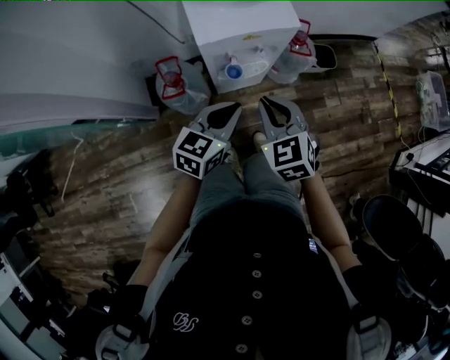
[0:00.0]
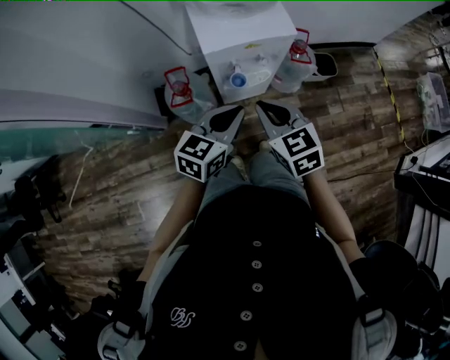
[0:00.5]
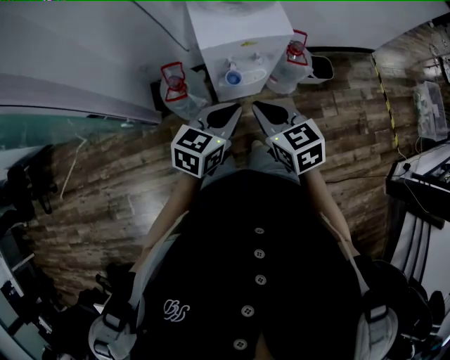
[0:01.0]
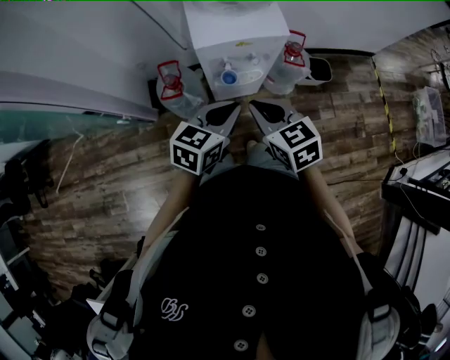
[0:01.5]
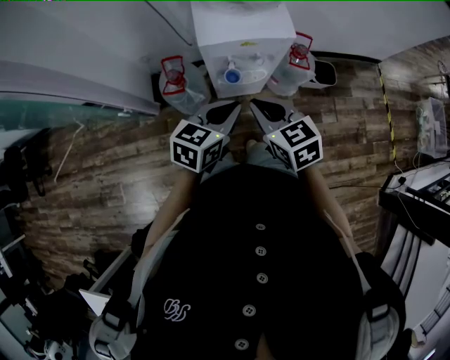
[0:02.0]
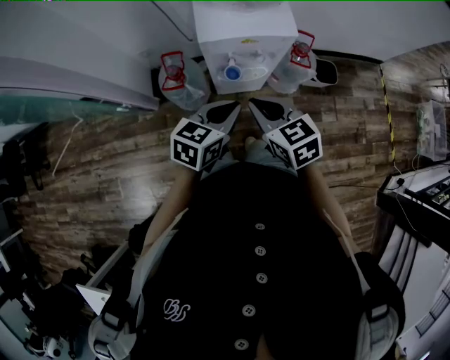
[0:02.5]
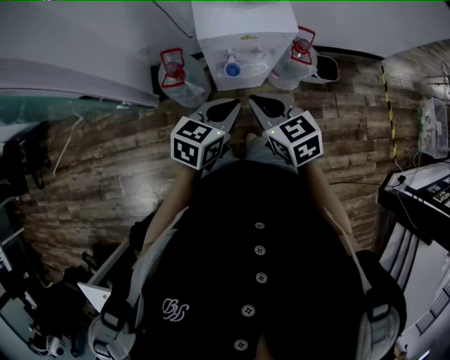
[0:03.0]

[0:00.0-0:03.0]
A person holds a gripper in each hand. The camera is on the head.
0:00.0 to 0:01.5: The left gripper shifts by approximately 5 cm. Meanwhile the right gripper turns by some 20 degrees.
0:01.5 to 0:03.0: The grippers stay close to where they were, moving slightly.

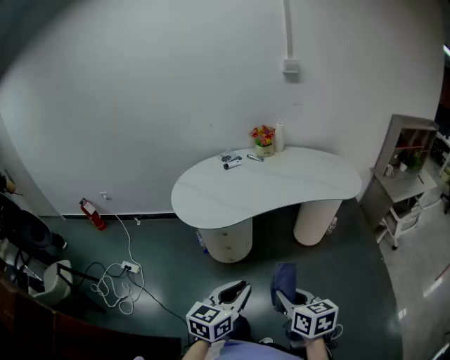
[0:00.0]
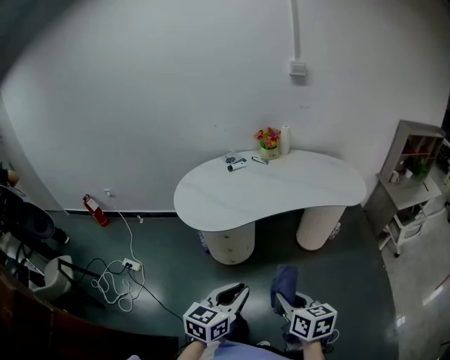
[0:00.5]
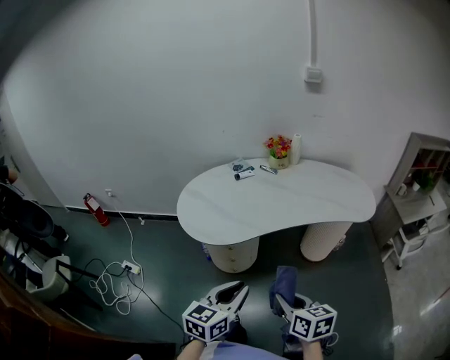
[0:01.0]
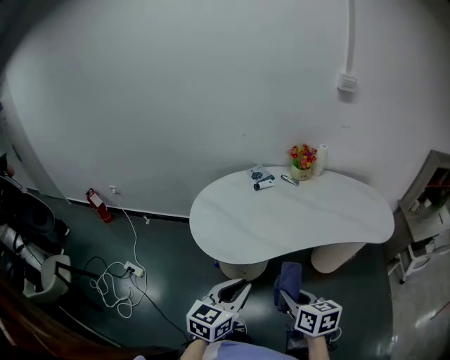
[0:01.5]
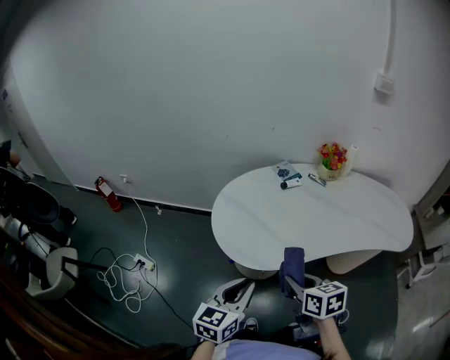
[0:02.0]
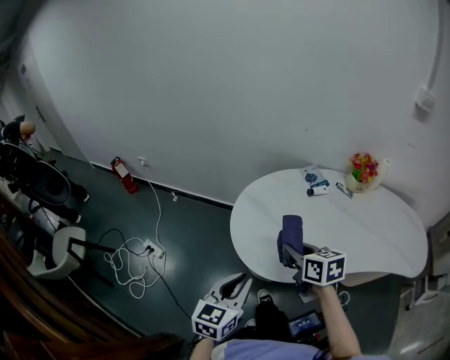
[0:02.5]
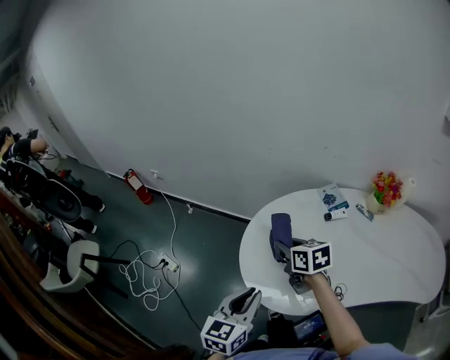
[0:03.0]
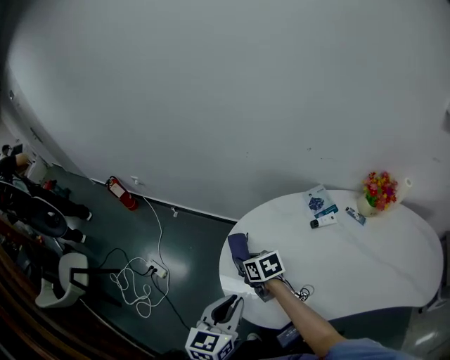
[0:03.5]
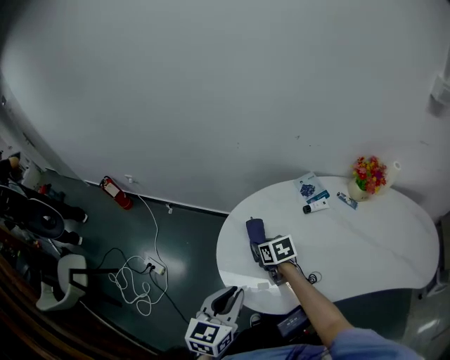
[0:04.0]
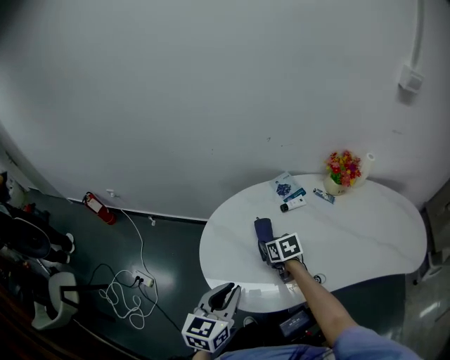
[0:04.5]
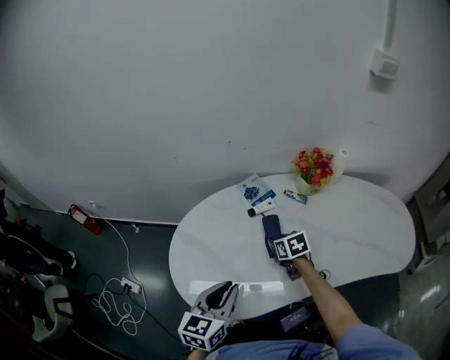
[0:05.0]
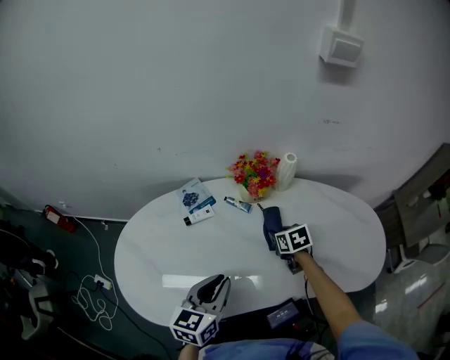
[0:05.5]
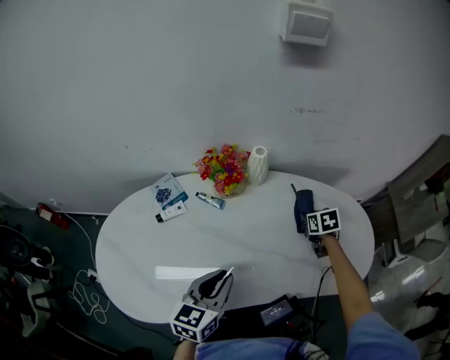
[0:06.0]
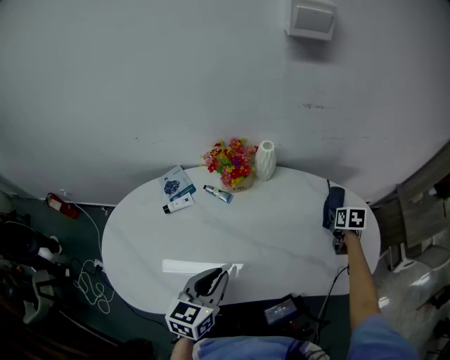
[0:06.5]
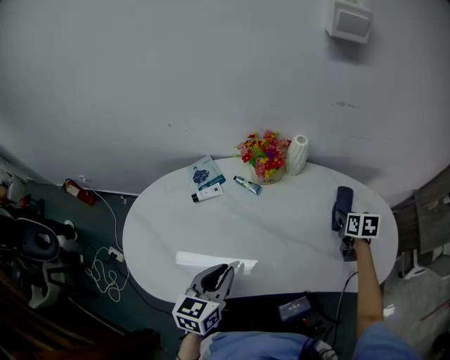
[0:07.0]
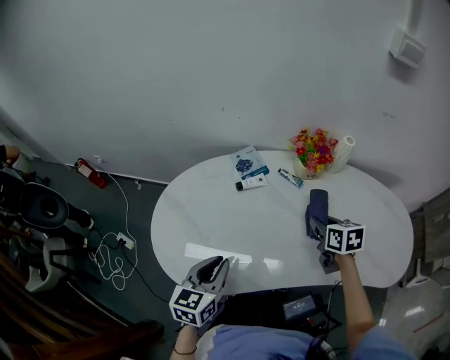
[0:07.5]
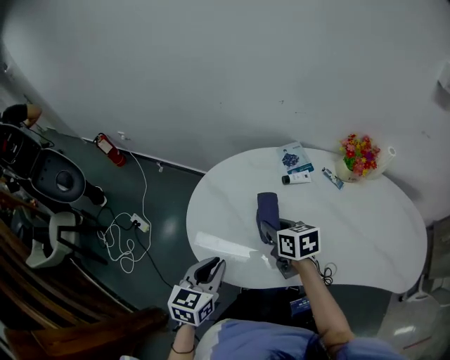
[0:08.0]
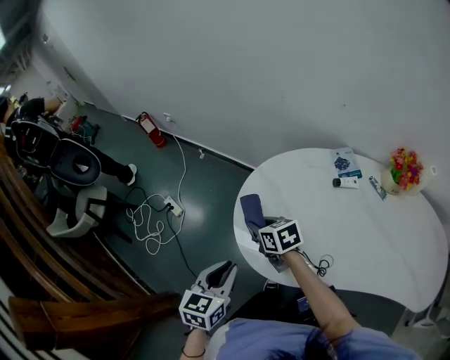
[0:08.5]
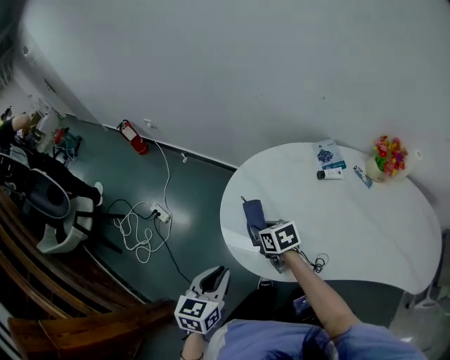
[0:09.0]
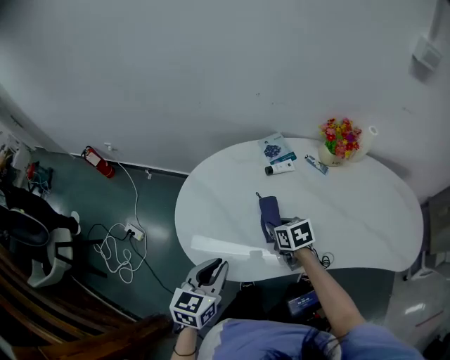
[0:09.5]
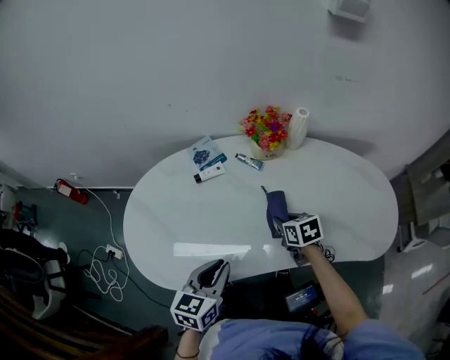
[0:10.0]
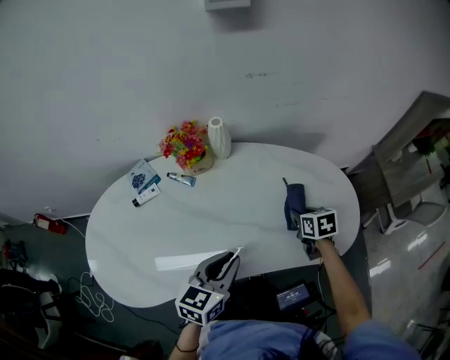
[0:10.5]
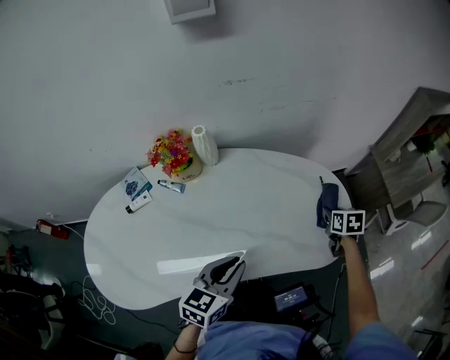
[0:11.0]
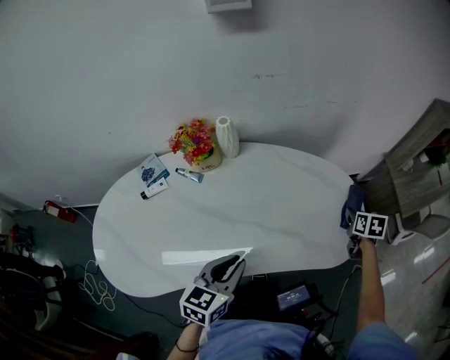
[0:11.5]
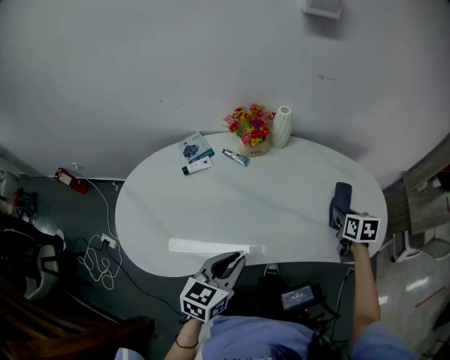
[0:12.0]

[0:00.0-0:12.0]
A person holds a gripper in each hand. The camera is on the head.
0:00.0 to 0:02.0: The grippers both shift forward and to the left by about 35 cm.
0:02.0 to 0:04.0: The right gripper changes place by roughly 40 cm, and turns by roughly 20 degrees; the left gripper shifts by approximately 20 cm.
0:04.0 to 0:06.0: The pair of grippers is taken some 60 cm. The left gripper rotates approximately 20 degrees; the right gripper swivels roughly 30 degrees.
0:06.0 to 0:08.0: Both grippers are carried approximately 50 cm. The left gripper changes its angle by approximately 30 degrees; the right gripper changes its angle by roughly 40 degrees.
0:08.0 to 0:10.0: The right gripper ends up some 35 cm from where it was; the left gripper shifts by about 25 cm.
0:10.0 to 0:12.0: The right gripper turns by some 20 degrees.

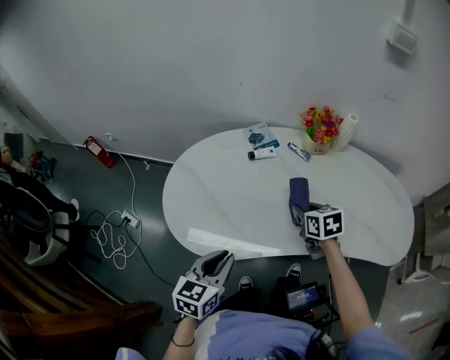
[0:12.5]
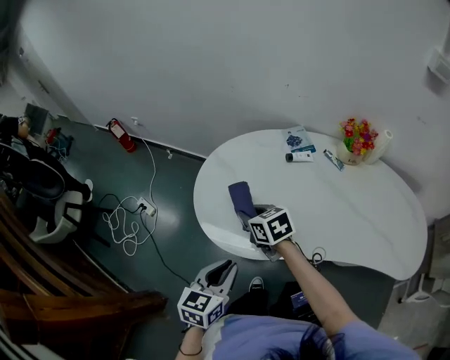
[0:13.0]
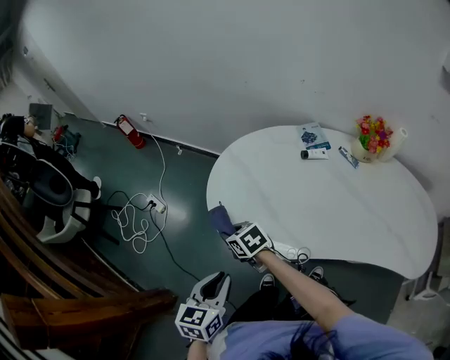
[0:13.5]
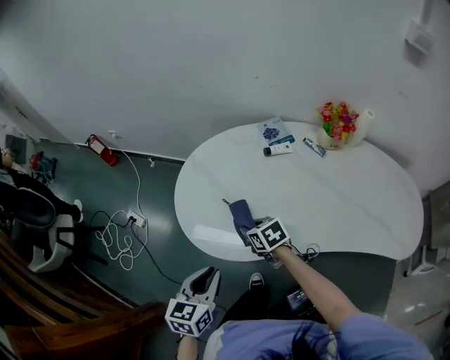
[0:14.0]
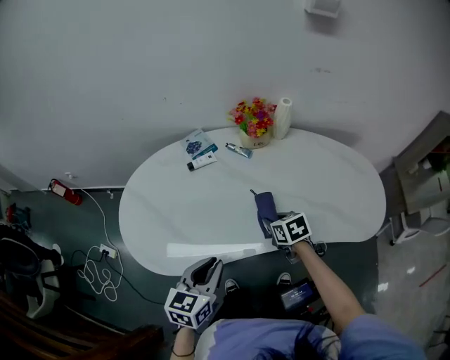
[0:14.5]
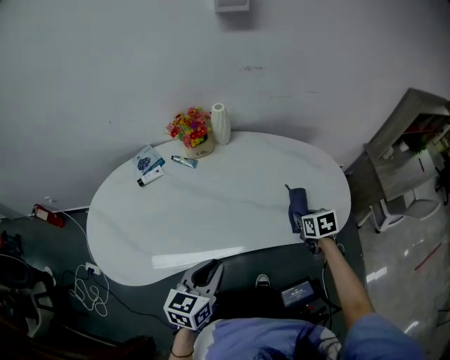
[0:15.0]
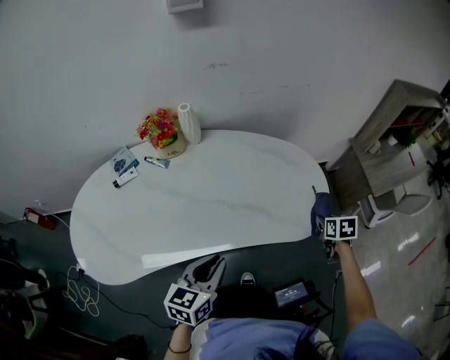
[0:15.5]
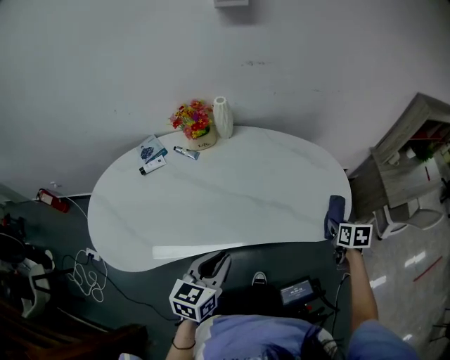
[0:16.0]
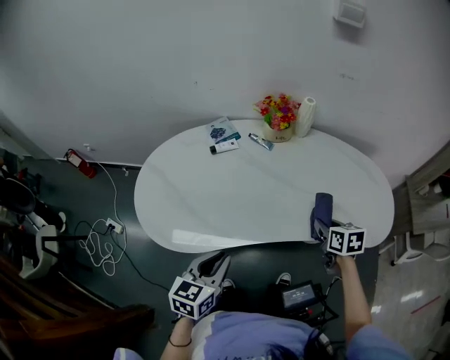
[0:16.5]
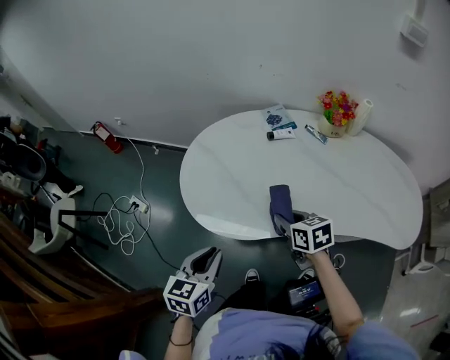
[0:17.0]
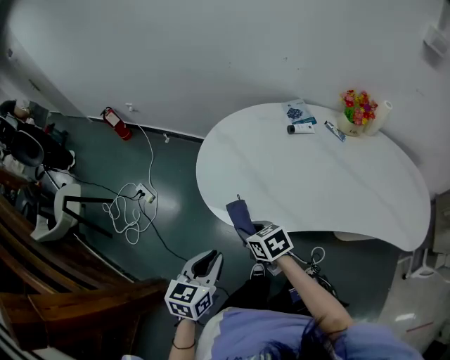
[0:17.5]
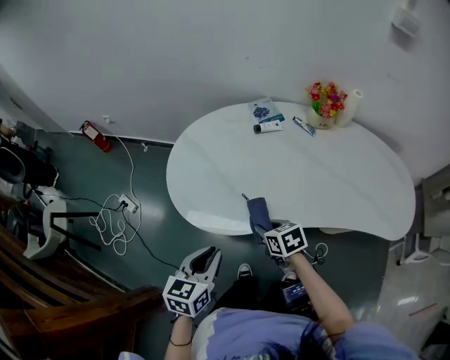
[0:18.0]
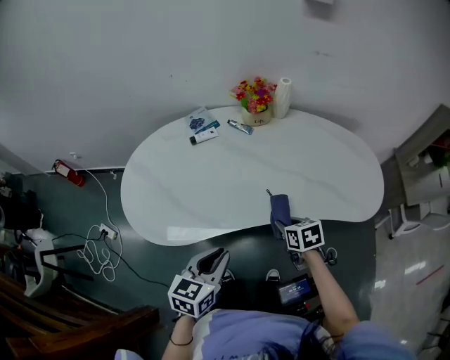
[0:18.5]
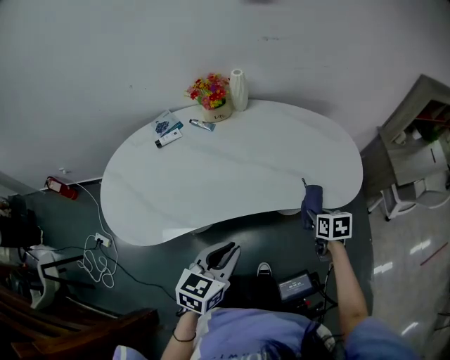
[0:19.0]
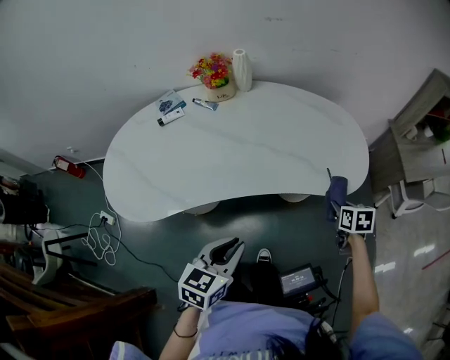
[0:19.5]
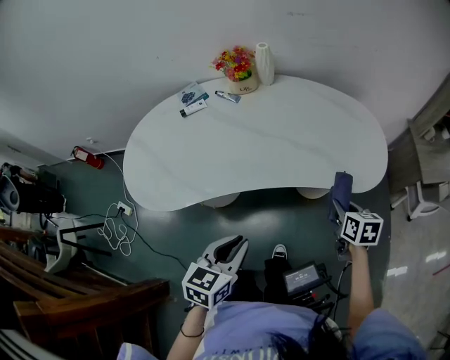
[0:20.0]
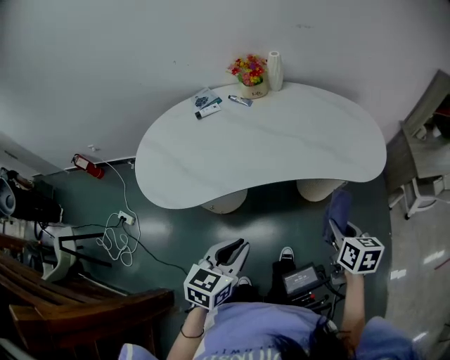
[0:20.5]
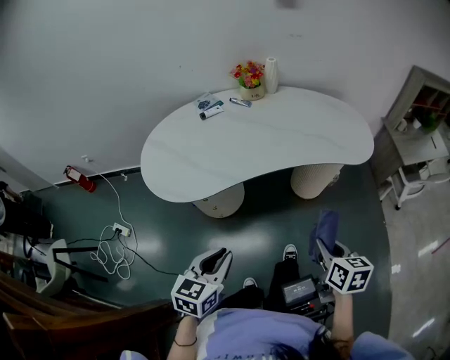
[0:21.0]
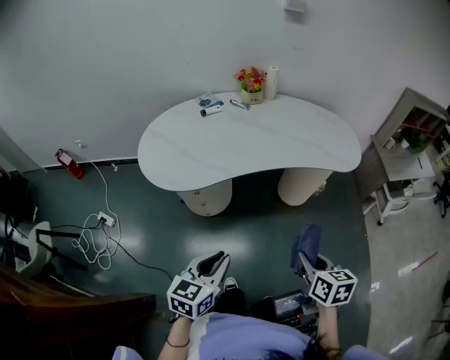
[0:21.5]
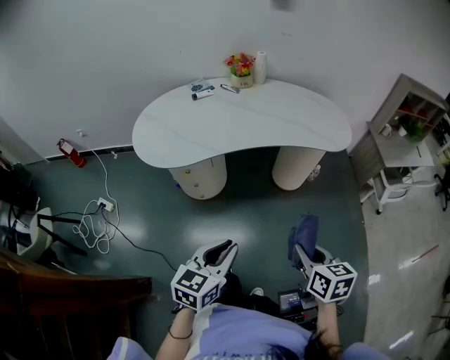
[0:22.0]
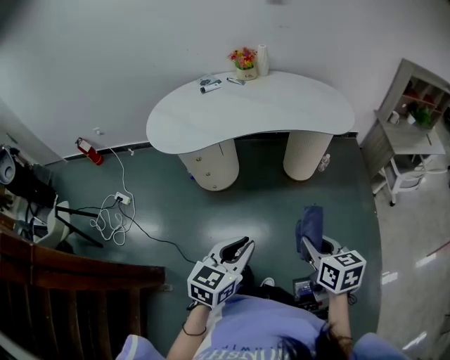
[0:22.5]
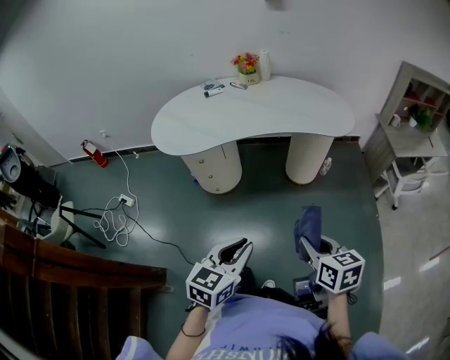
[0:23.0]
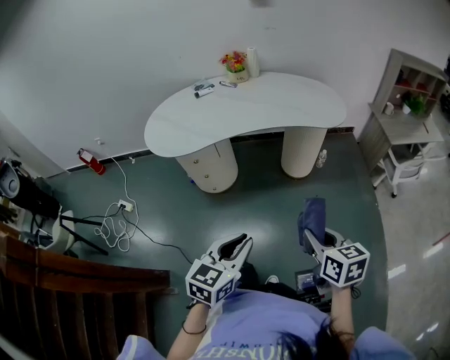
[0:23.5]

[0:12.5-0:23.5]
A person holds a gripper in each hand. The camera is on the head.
0:14.5 to 0:16.0: The right gripper moves some 50 cm, and rotates about 30 degrees, while the left gripper moves approximately 25 cm.
0:16.0 to 0:18.0: The two grippers travel together, about 50 cm. The left gripper swivels some 20 degrees; the right gripper swivels roughly 50 degrees.
0:18.0 to 0:20.0: The left gripper moves some 35 cm. The right gripper shifts by roughly 50 cm, and changes its angle by approximately 40 degrees.
0:20.0 to 0:21.5: The grippers both shift backward and to the left by about 35 cm.
0:21.5 to 0:23.5: The left gripper travels to the right and backward by roughly 20 cm. Meanwhile the right gripper travels backward and to the right by about 15 cm.

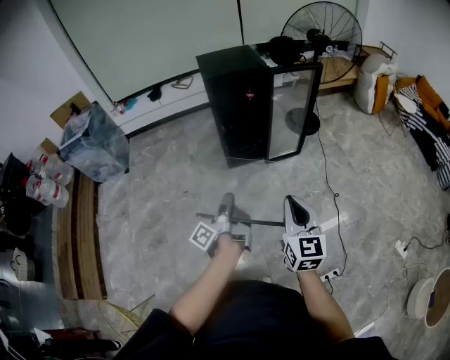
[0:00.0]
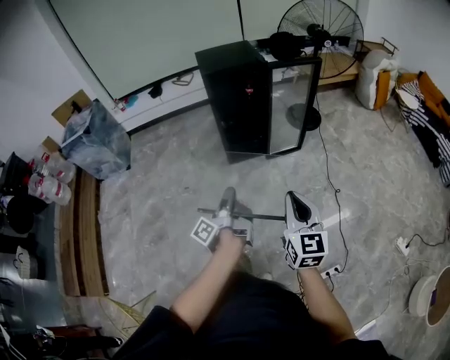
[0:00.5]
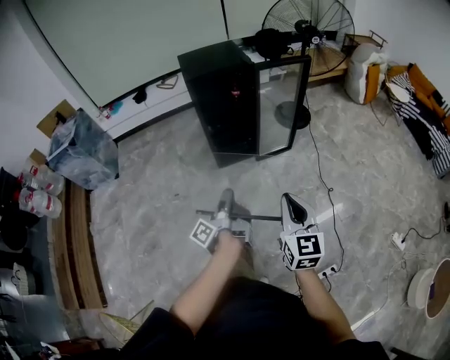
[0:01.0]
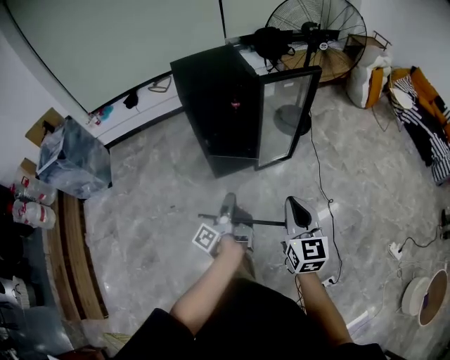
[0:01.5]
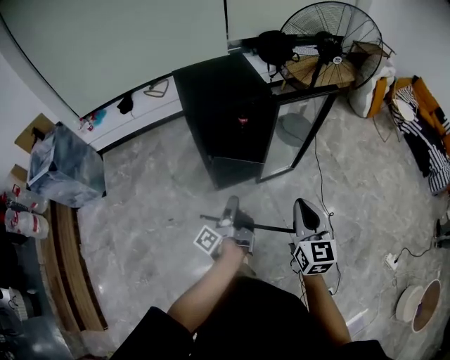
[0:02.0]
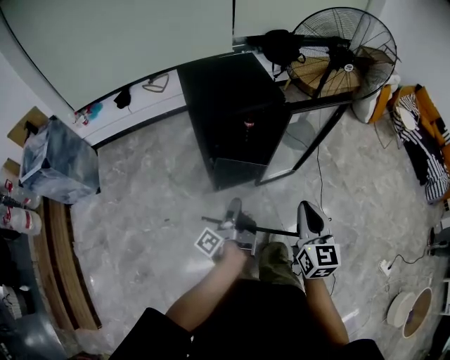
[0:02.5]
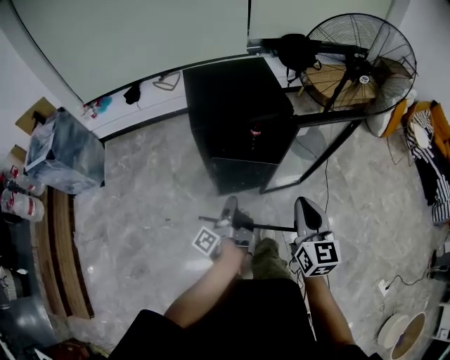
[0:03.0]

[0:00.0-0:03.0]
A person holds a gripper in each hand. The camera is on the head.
0:00.0 to 0:01.5: The right gripper moves some 25 cm.
0:01.5 to 0:03.0: The right gripper changes place by roughly 35 cm.
